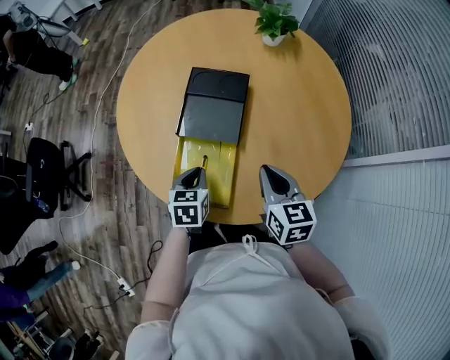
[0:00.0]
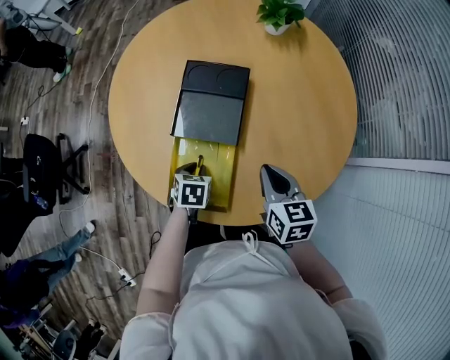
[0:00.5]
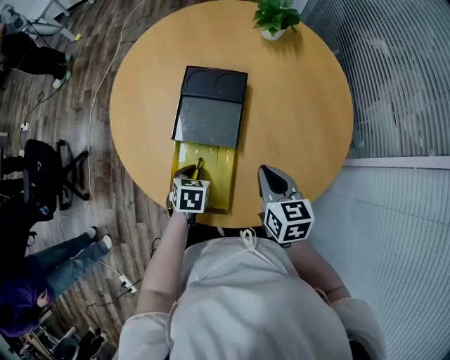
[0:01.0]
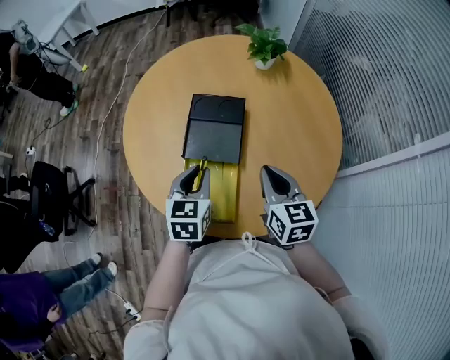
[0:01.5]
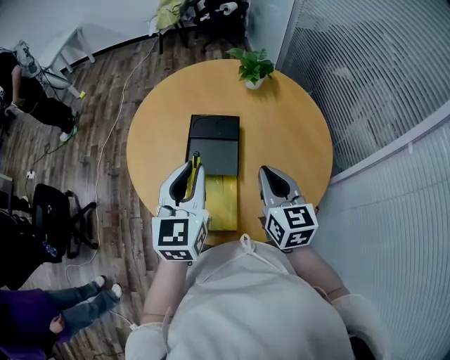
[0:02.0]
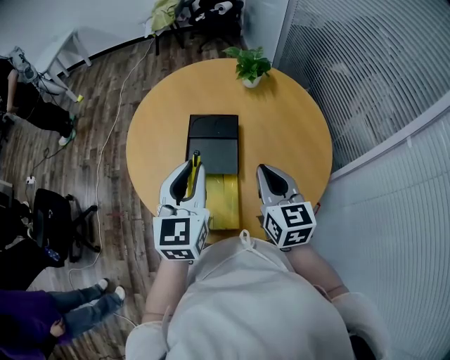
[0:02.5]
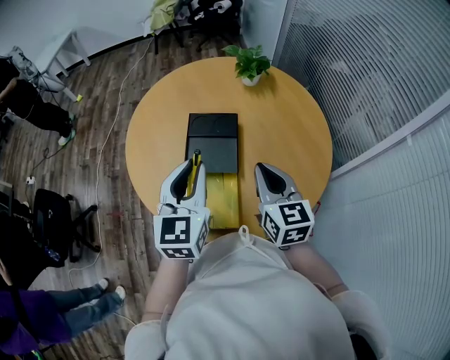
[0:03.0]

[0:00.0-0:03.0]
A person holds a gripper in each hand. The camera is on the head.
0.0 to 1.5 s: The right gripper goes about 5 cm upward. The left gripper is displaced upward by about 10 cm.
1.5 to 3.0 s: The right gripper travels upward by approximately 10 cm; the left gripper shifts roughly 15 cm upward, and turns by approximately 20 degrees.

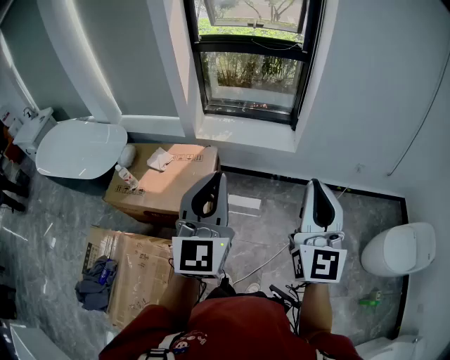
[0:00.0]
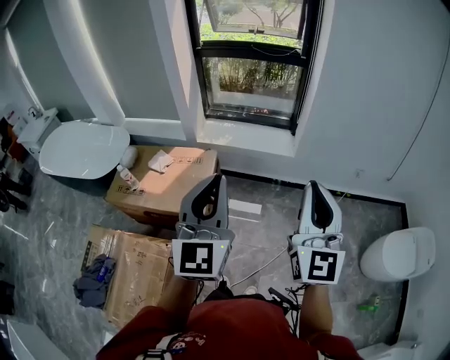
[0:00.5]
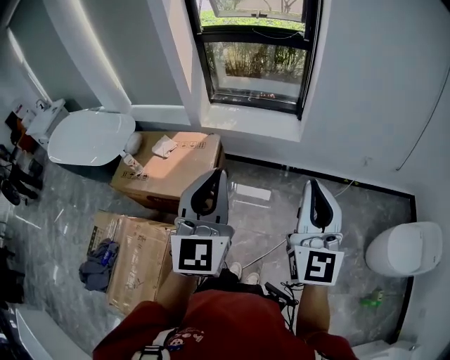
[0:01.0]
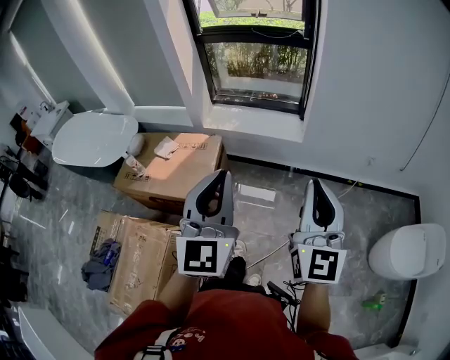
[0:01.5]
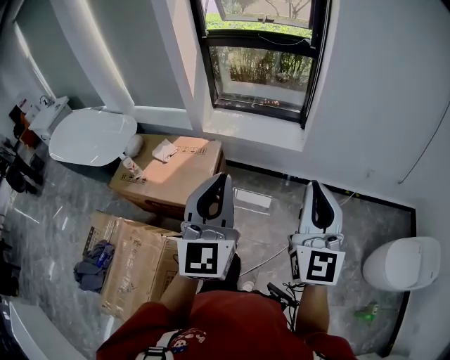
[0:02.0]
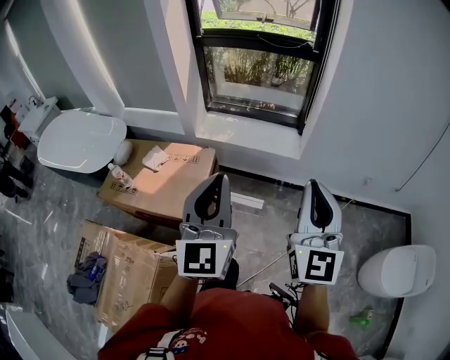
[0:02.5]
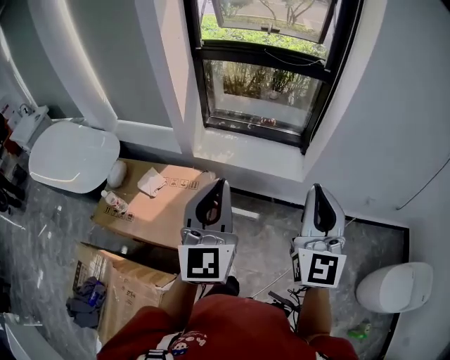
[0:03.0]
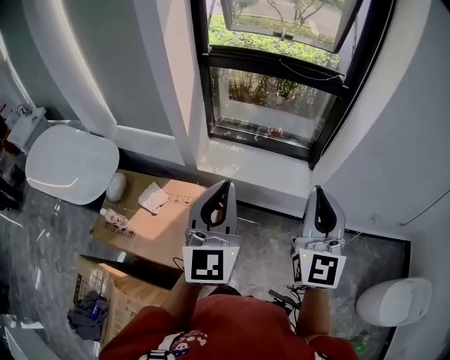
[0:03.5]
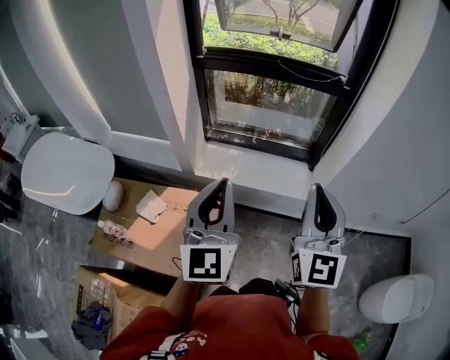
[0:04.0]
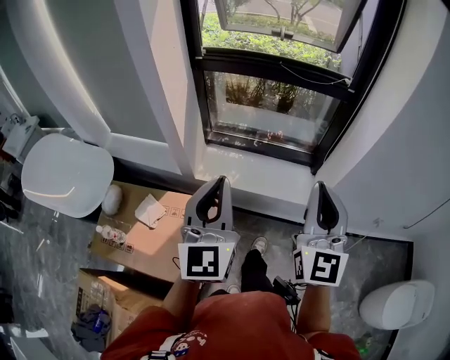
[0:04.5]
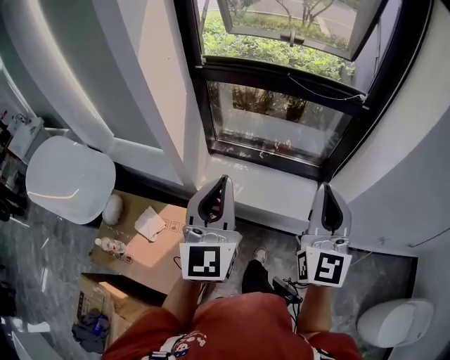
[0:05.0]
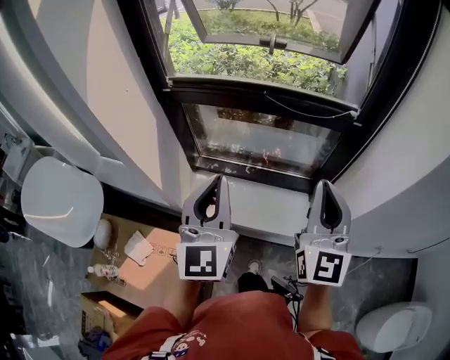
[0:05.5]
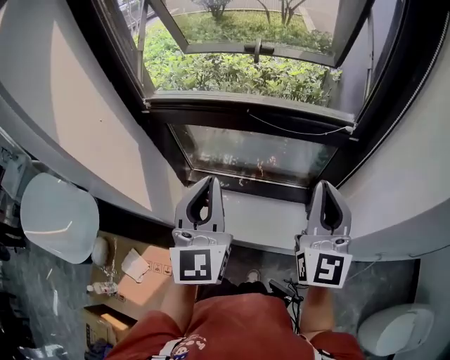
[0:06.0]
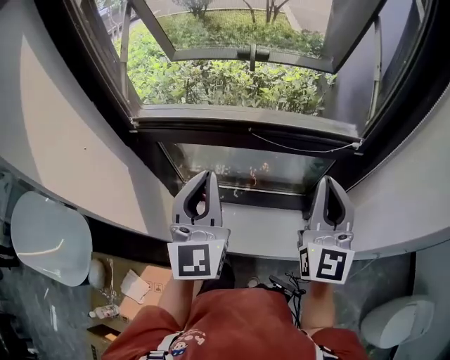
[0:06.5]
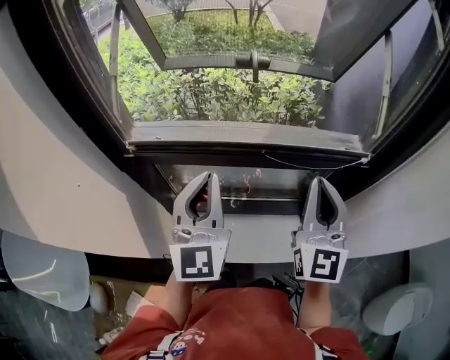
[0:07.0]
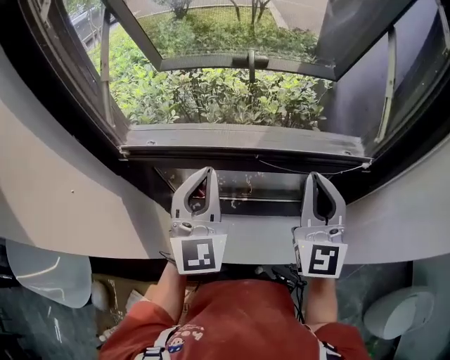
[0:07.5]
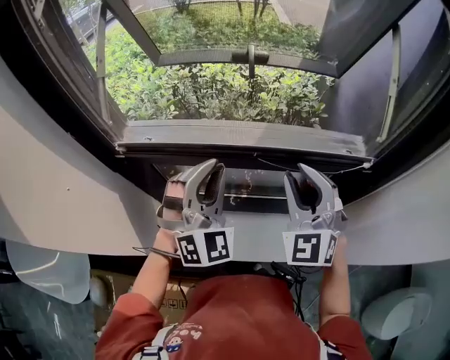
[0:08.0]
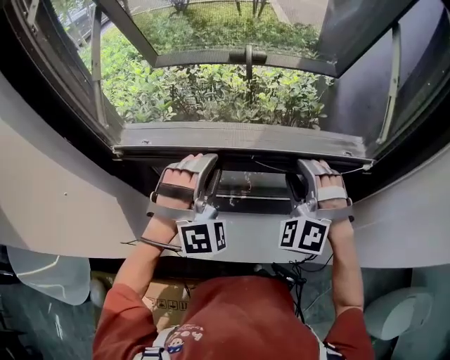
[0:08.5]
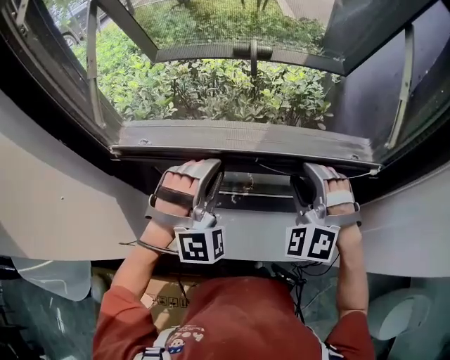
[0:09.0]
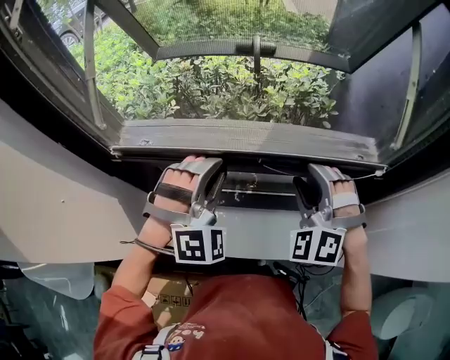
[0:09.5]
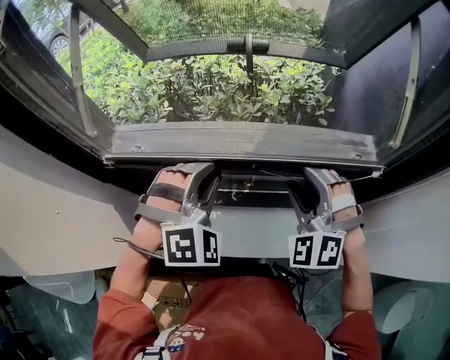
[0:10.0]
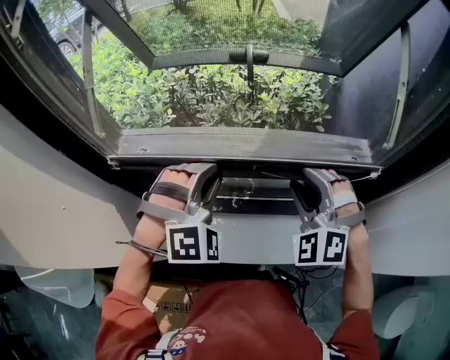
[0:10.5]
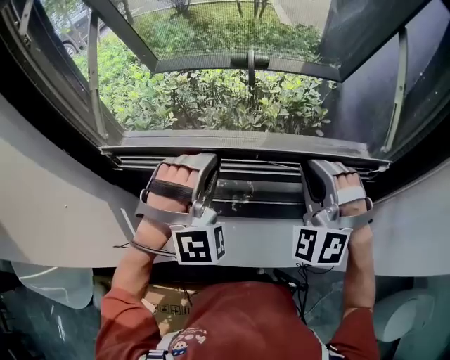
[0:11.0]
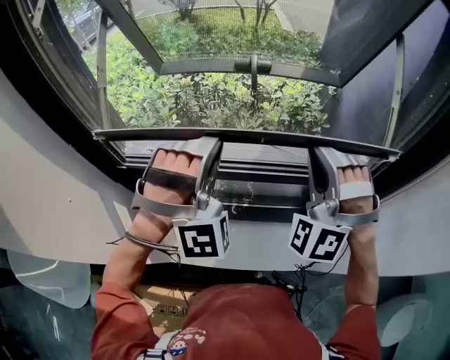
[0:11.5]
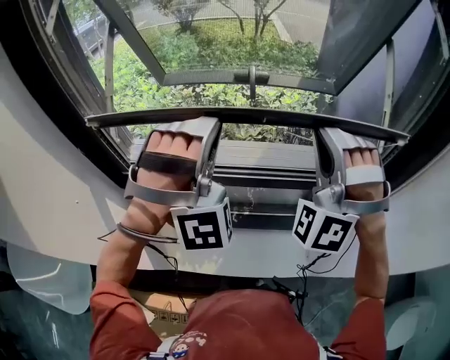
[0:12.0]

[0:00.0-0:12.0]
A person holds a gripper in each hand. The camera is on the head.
0.0 to 2.0 s: The grippers both shift to the right by some 5 cm.
2.0 to 4.0 s: The grippers both shift forward by about 40 cm.
4.0 to 6.0 s: The grippers both shift forward by approximately 35 cm.
6.0 to 8.0 s: The left gripper moves forward, roughly 20 cm, and rotates around the line of its fingers by about 40 degrees, clockwise from behind. Meanwhile the right gripper goes about 20 cm forward and to the left, rotates roughly 40 degrees, and opens its fingers.
8.0 to 10.0 s: The right gripper shifts roughly 5 cm downward, changes its angle by about 30 degrees, and opens. The left gripper swivels about 30 degrees.
10.0 to 12.0 s: Both grippers travel together upward, approximately 20 cm. The right gripper swivels approximately 40 degrees, and closes up. Meanwhile the left gripper angles its fingers upward, by roughly 30 degrees.

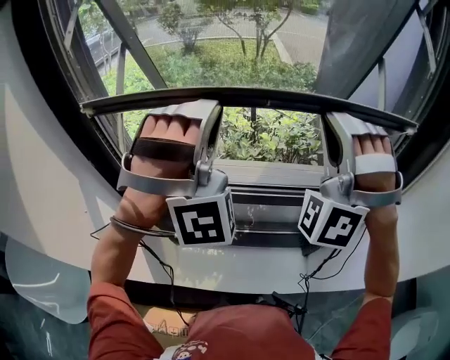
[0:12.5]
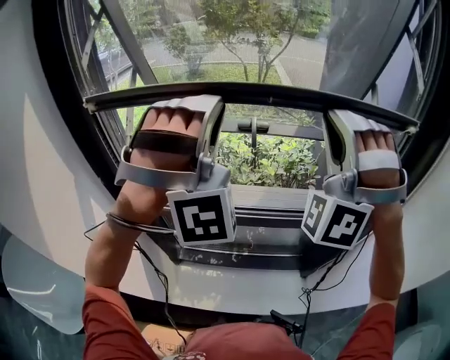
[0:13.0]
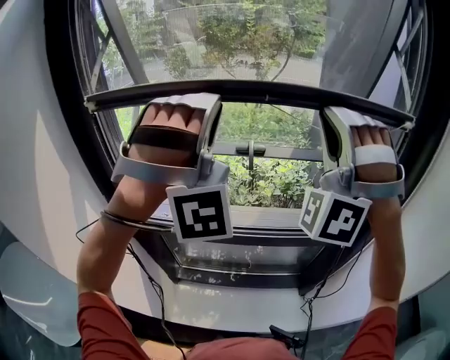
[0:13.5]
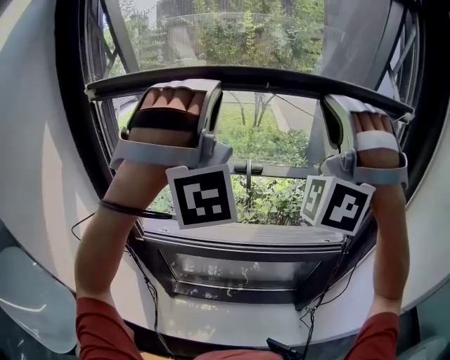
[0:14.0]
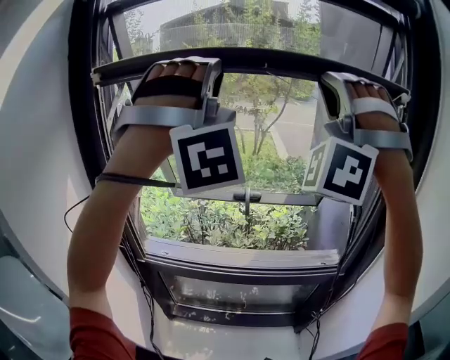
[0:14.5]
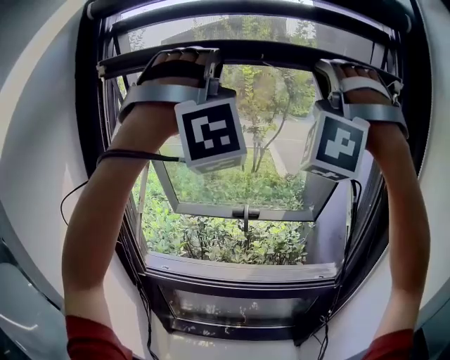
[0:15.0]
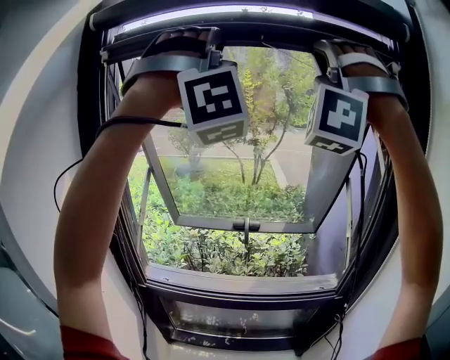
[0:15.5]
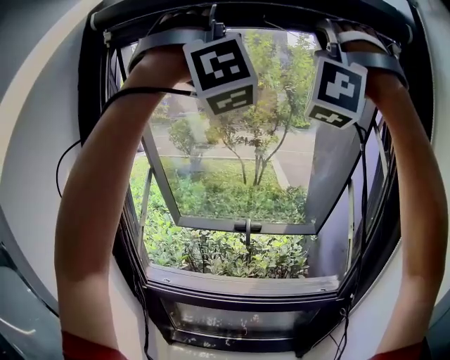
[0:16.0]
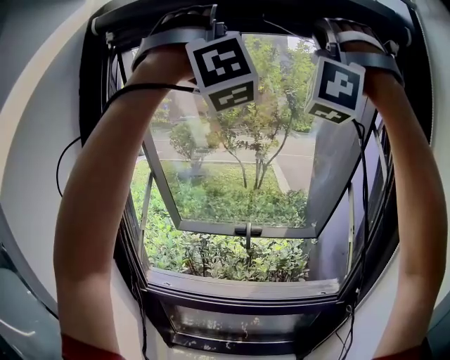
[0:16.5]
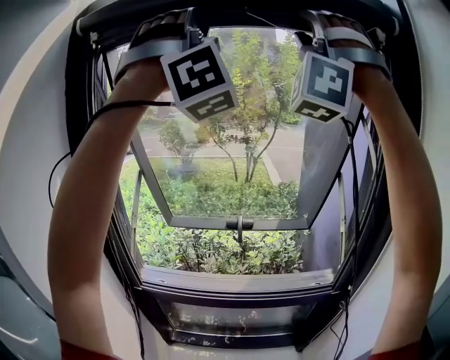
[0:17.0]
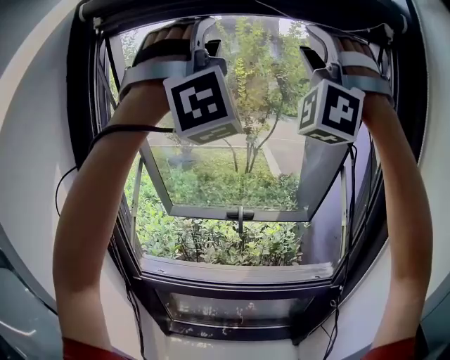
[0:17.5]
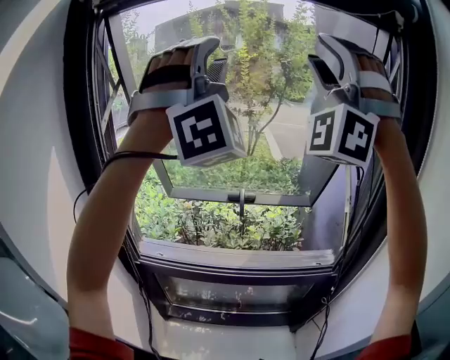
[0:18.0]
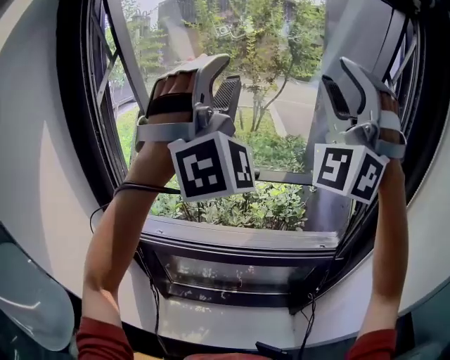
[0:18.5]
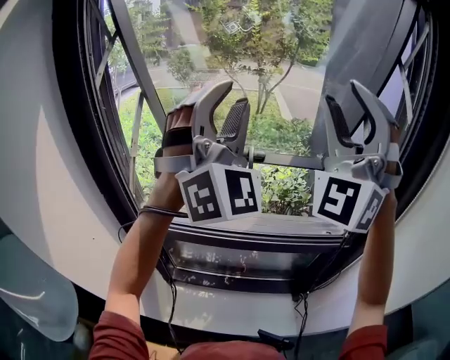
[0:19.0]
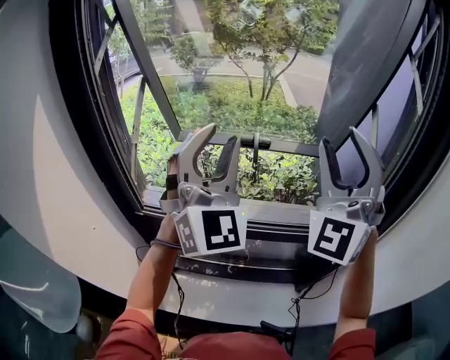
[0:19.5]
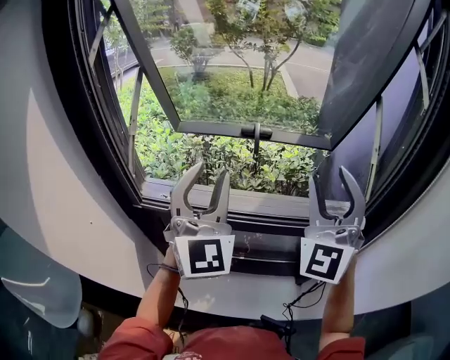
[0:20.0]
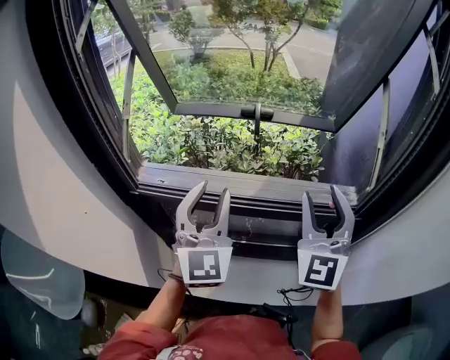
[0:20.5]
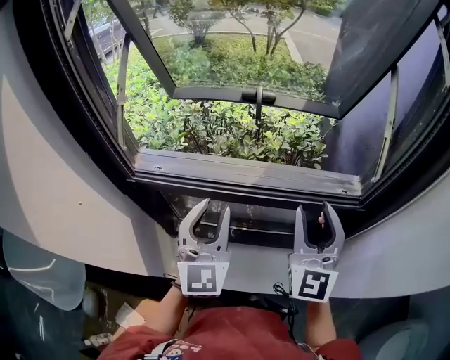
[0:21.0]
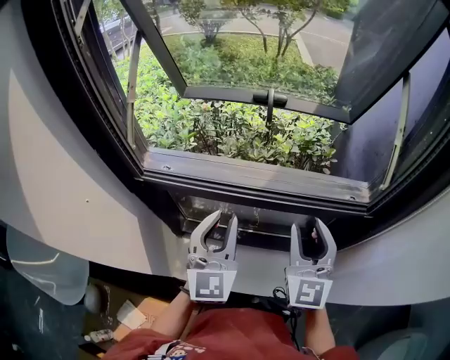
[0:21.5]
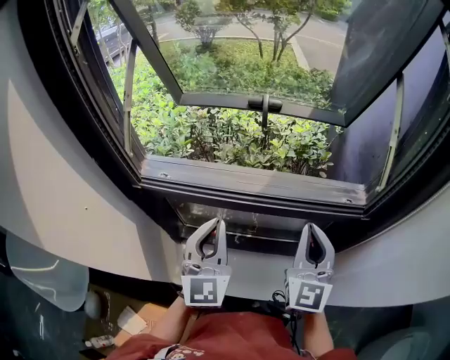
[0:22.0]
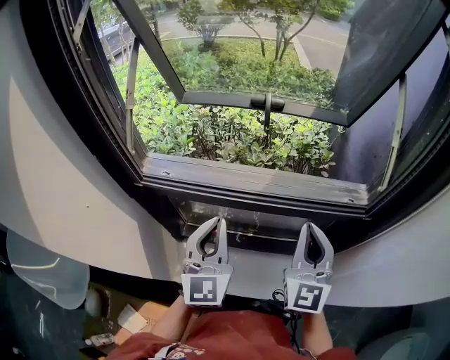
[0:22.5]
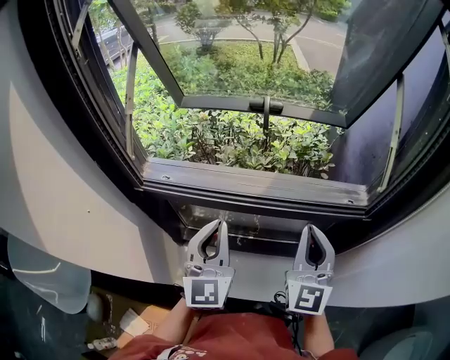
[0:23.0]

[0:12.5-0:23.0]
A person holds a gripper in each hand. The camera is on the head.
12.5 to 14.5 s: Both grippers travel together upward, roughly 25 cm. The left gripper changes its angle by some 20 degrees.
14.5 to 16.5 s: The two grippers go about 20 cm upward.
16.5 to 19.0 s: The two grippers go approximately 30 cm downward. The left gripper swivels some 40 degrees. The right gripper turns by some 40 degrees, and opens up.
19.0 to 21.0 s: The two grippers go some 35 cm downward. The right gripper rolls clockwise, seen from behind, by approximately 50 degrees, while the left gripper rolls counterclockwise, seen from behind, by roughly 50 degrees.
21.0 to 23.0 s: The right gripper closes, while the left gripper closes up.

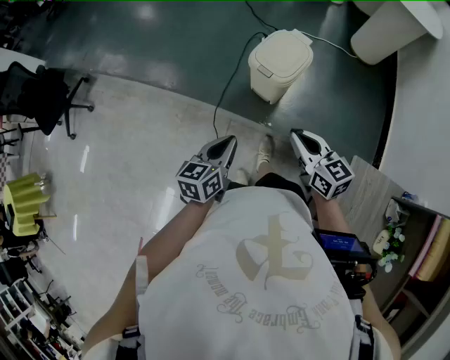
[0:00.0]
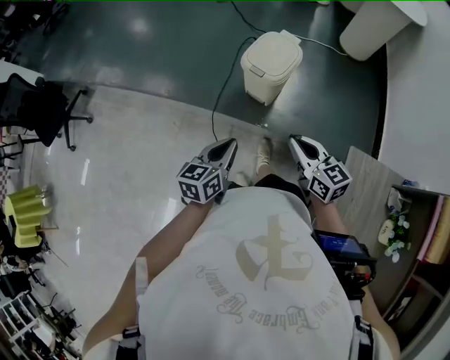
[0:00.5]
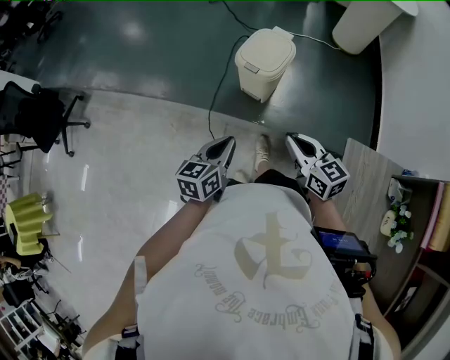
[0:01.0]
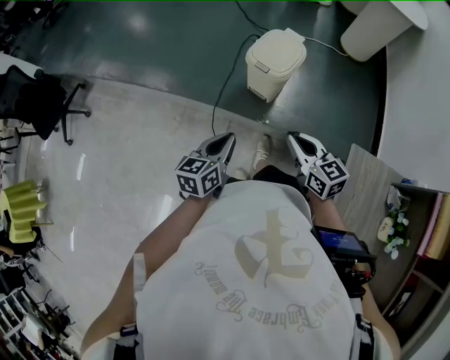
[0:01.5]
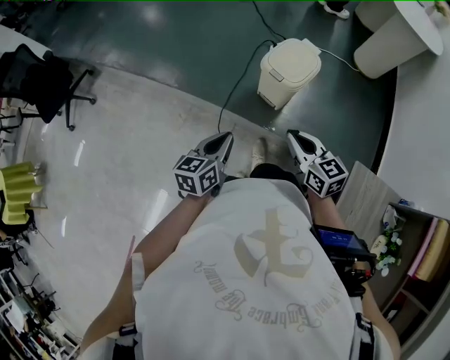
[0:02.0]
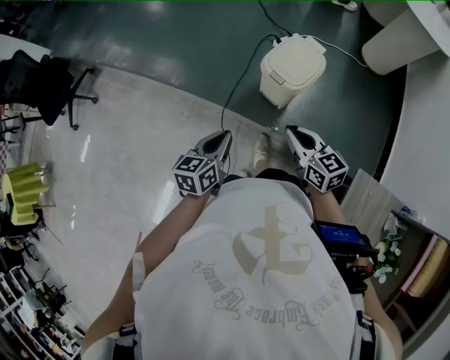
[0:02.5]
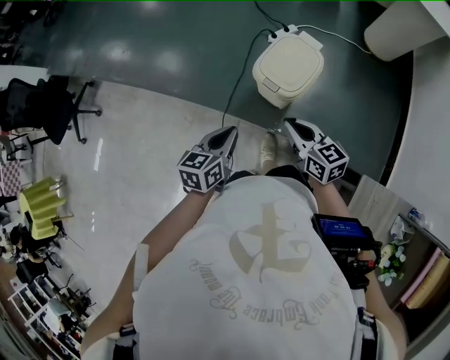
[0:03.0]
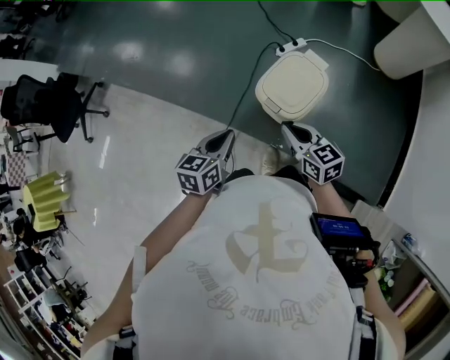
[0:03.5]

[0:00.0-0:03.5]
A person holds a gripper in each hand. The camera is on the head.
0.0 to 2.0 s: The left gripper is displaced to the left by approximately 5 cm. The right gripper ends up roughly 5 cm from where it was.
2.0 to 3.5 s: The two grippers go some 20 cm forward.
